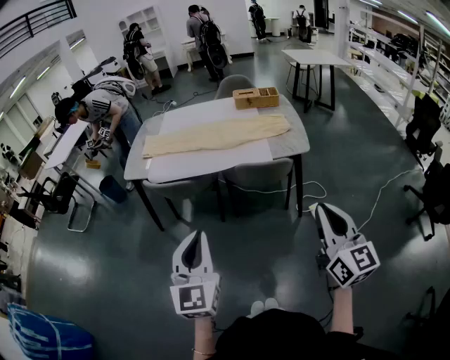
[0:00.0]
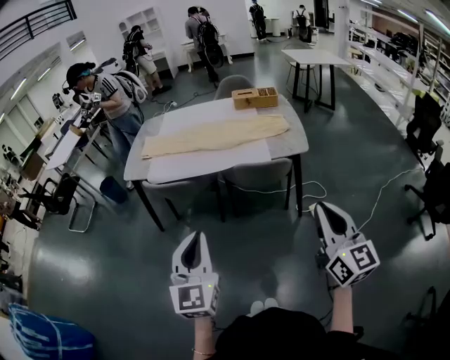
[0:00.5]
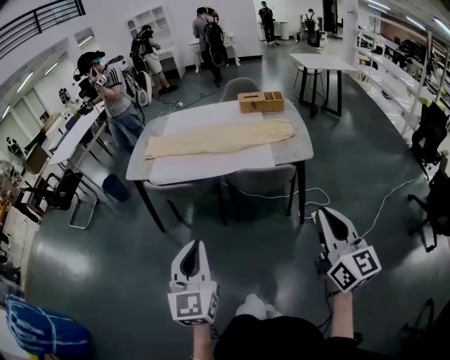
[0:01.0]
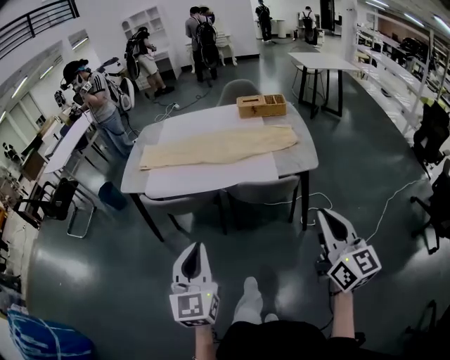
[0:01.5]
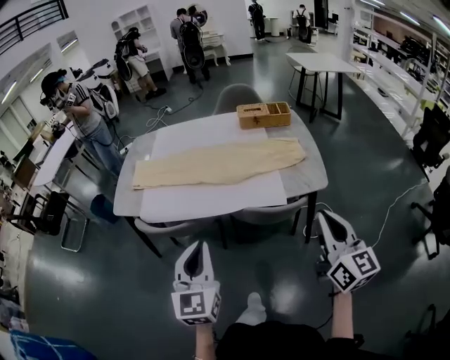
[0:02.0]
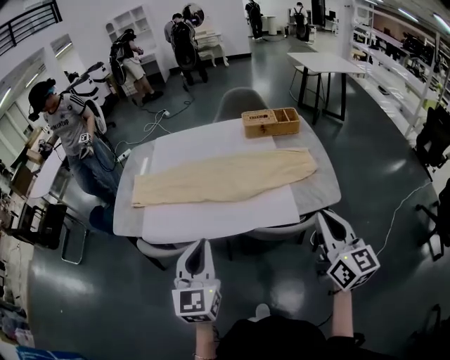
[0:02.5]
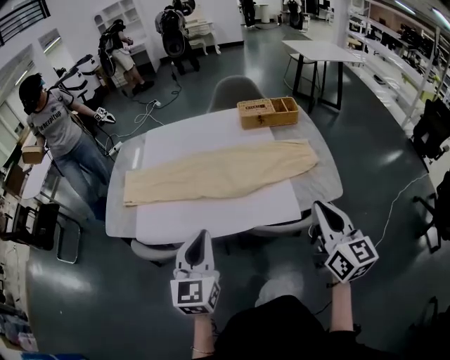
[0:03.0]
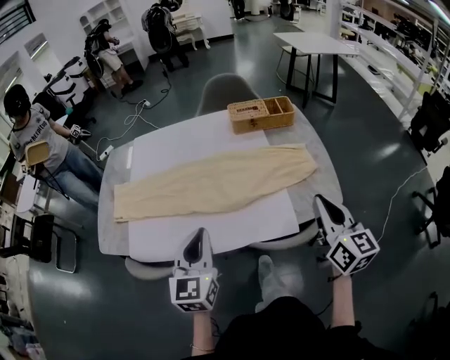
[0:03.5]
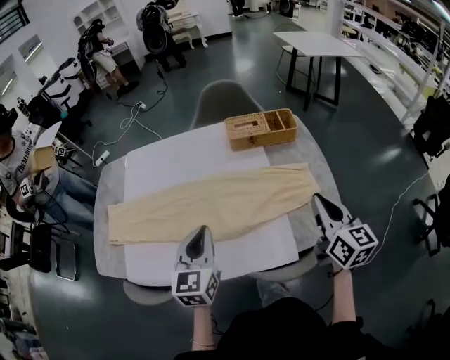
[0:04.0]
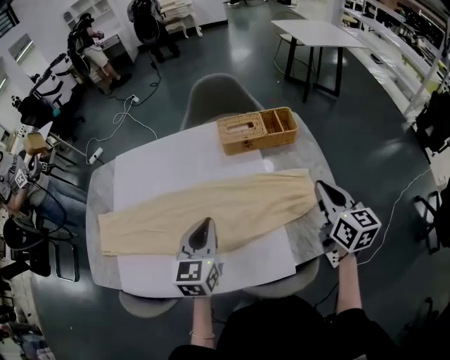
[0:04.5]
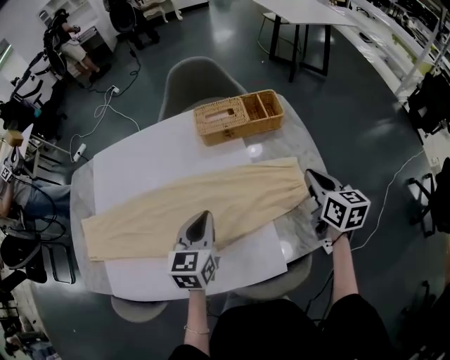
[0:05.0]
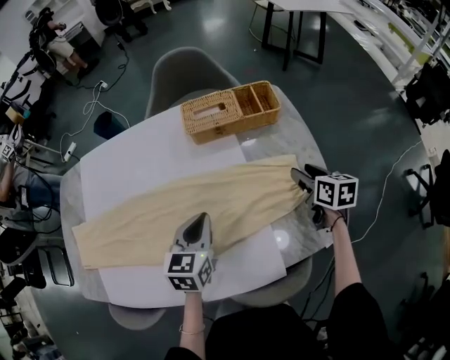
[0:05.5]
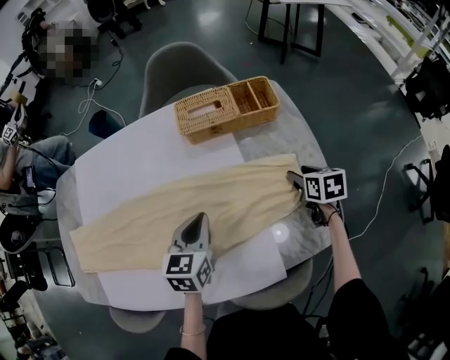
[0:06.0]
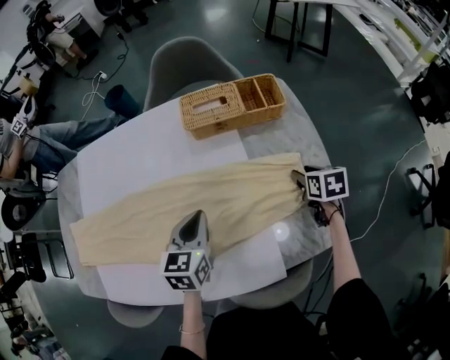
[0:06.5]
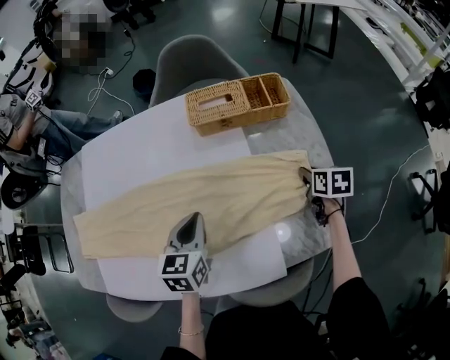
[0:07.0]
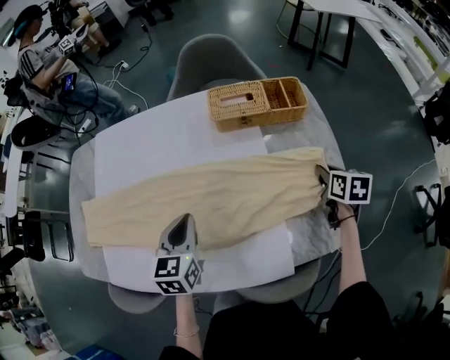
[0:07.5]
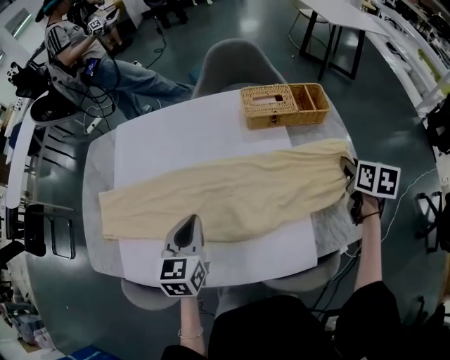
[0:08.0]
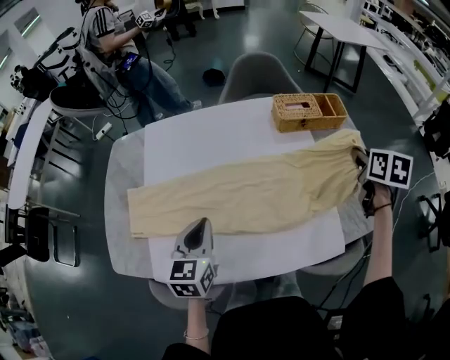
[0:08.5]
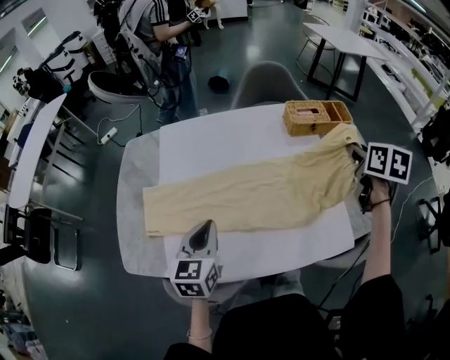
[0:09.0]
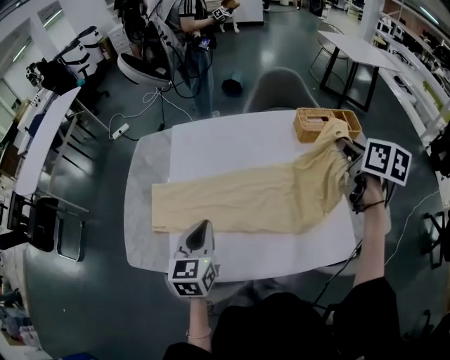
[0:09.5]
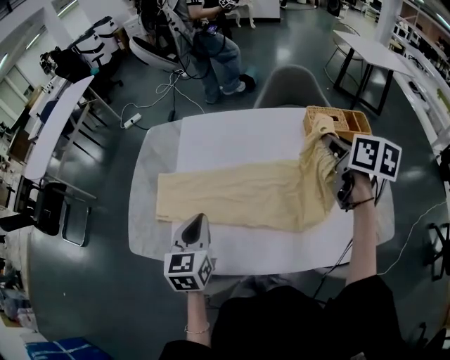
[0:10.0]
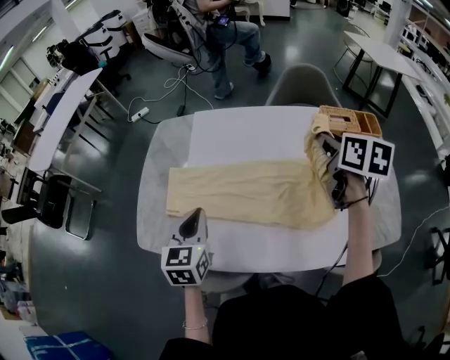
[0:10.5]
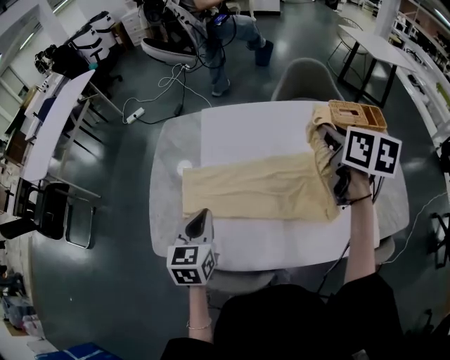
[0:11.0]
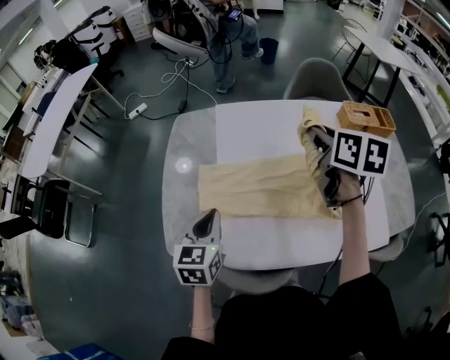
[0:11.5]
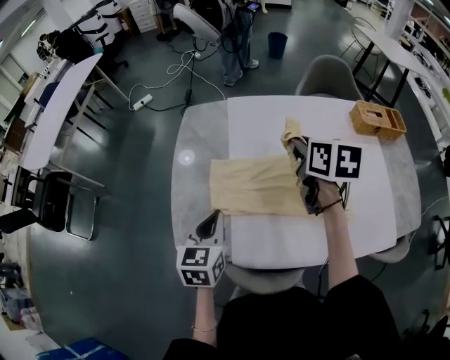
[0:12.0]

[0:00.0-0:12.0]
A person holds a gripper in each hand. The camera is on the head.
0:00.0 to 0:02.0: The grippers both shift forward by some 25 cm.
0:02.0 to 0:04.0: The grippers both shift forward by some 35 cm.
0:04.0 to 0:06.0: The right gripper shifts approximately 30 cm downward and forward, tips its fingers downward by approximately 40 degrees, and opens, while the left gripper travels forward, downward and to the right by some 25 cm, and changes its angle by about 20 degrees.
0:06.0 to 0:08.0: The right gripper travels upward by some 15 cm, and closes its fingers. The left gripper is displaced to the left and backward by some 20 cm.
0:08.0 to 0:10.0: The left gripper travels to the left and backward by some 25 cm, while the right gripper moves to the left and upward, approximately 40 cm, and rotates approximately 20 degrees.
0:10.0 to 0:12.0: The left gripper moves to the left, approximately 20 cm, while the right gripper shifts about 35 cm to the left.

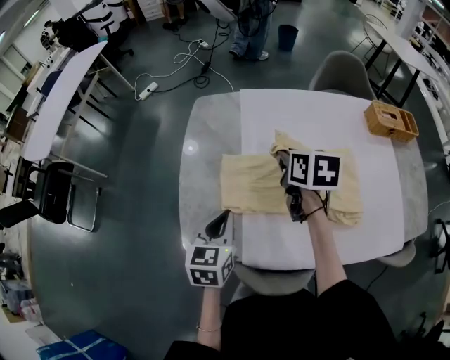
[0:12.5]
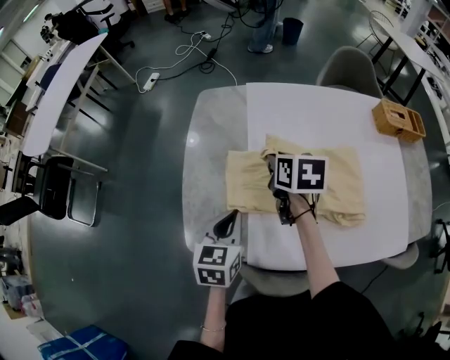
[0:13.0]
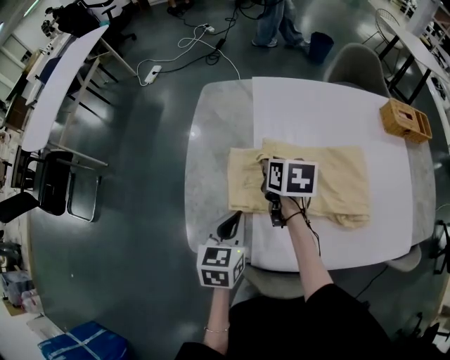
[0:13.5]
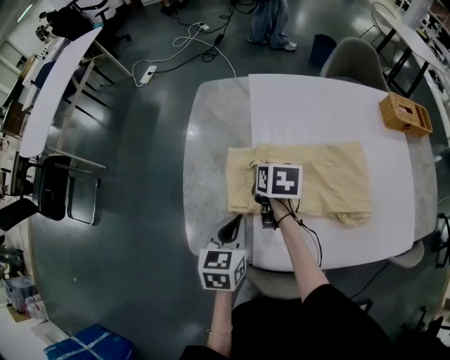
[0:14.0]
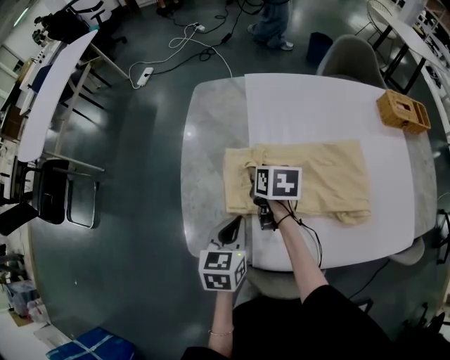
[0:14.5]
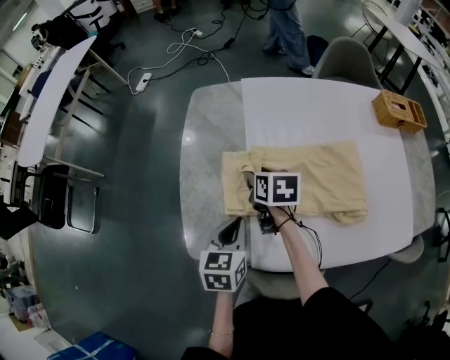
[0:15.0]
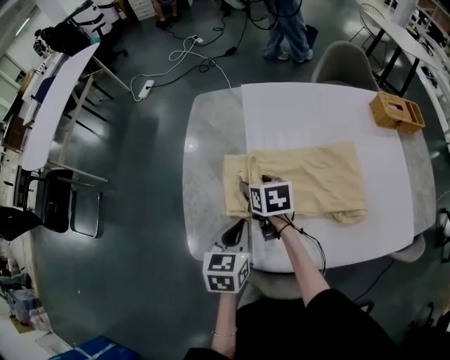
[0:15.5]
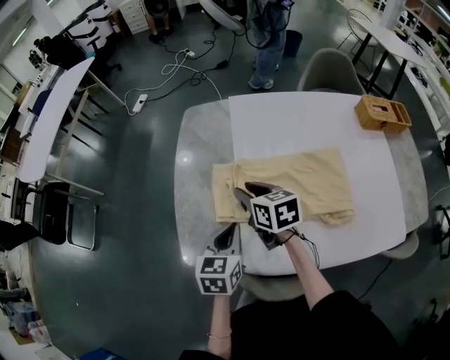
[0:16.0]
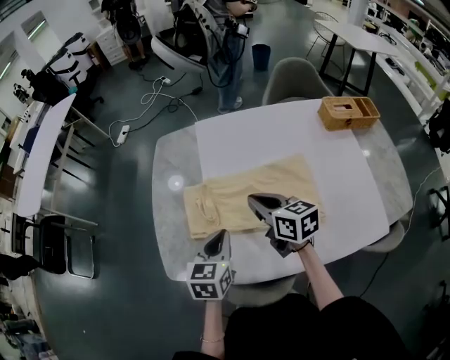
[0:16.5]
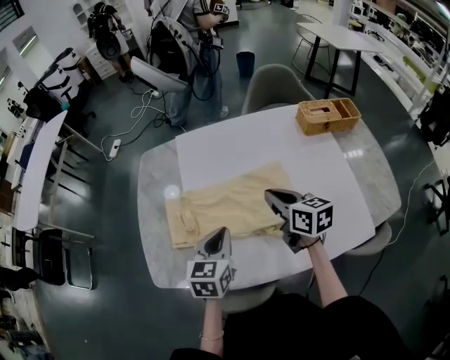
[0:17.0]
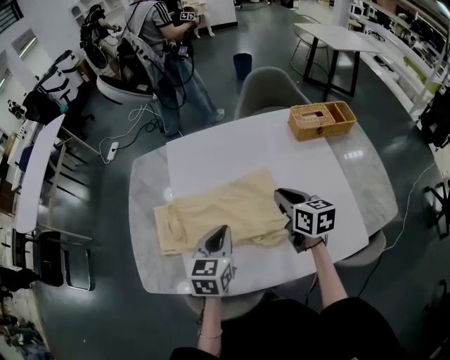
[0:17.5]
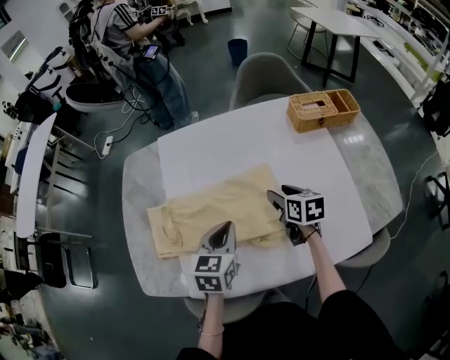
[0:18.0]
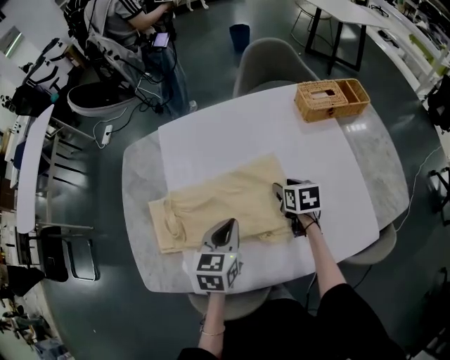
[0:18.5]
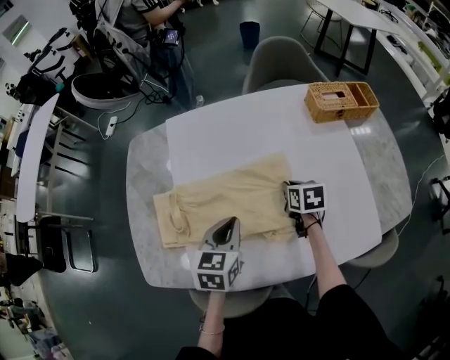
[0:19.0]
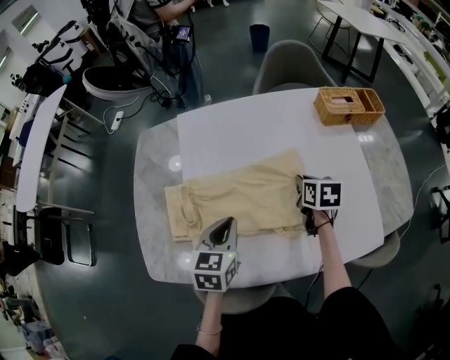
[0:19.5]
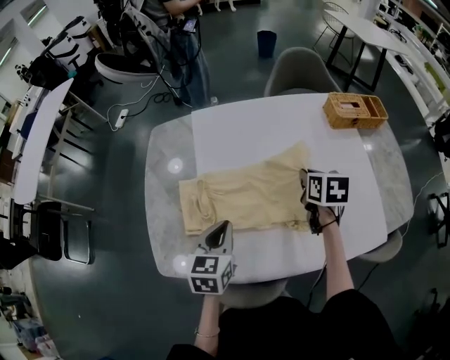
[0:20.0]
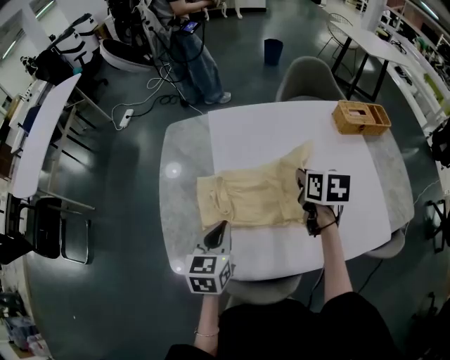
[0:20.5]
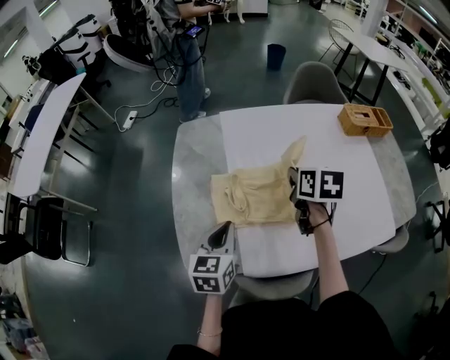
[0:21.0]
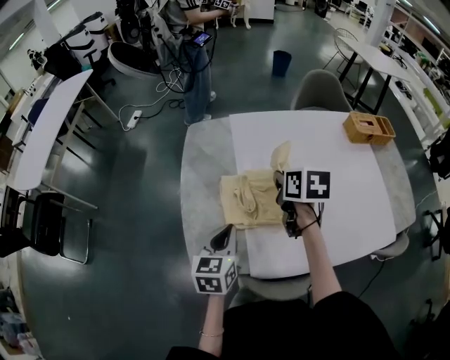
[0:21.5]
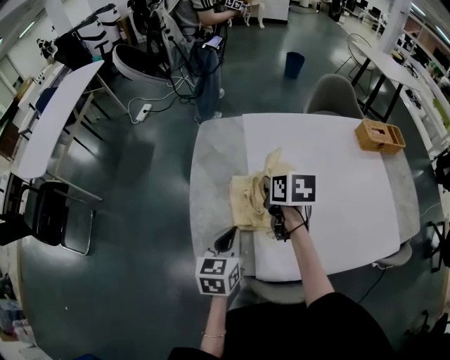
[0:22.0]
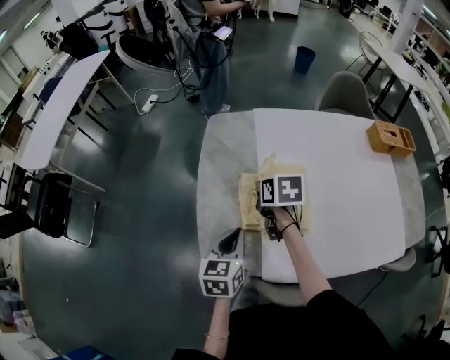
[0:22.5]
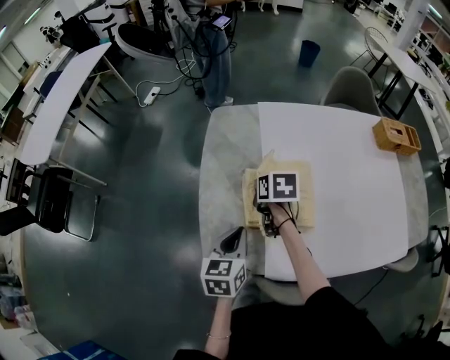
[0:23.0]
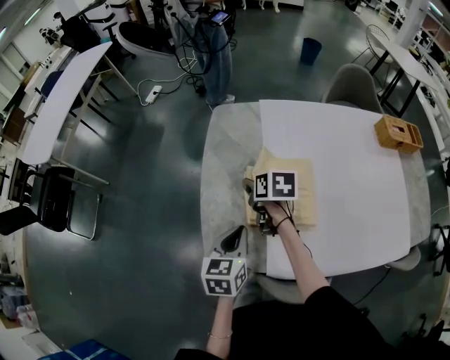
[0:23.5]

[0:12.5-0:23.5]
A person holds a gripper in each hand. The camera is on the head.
0:12.5 to 0:14.5: The right gripper moves downward and to the left, approximately 15 cm, while the left gripper goes some 5 cm downward.
0:14.5 to 0:16.0: The right gripper shifts approximately 5 cm upward, turns by about 20 degrees, and opens, then closes once more.
0:16.0 to 0:18.0: The right gripper heads to the right, covering about 40 cm, changes its angle by roughly 20 degrees, and closes and opens again. Meanwhile the left gripper travels to the right by approximately 25 cm.
0:18.0 to 0:20.0: The right gripper travels upward and to the left by roughly 10 cm, and closes. The left gripper heads to the left, covering some 15 cm.
0:20.0 to 0:21.5: The left gripper heads to the left, covering approximately 15 cm; the right gripper shifts roughly 25 cm to the left.
0:21.5 to 0:23.5: The right gripper shifts approximately 20 cm to the left and downward, and opens up.

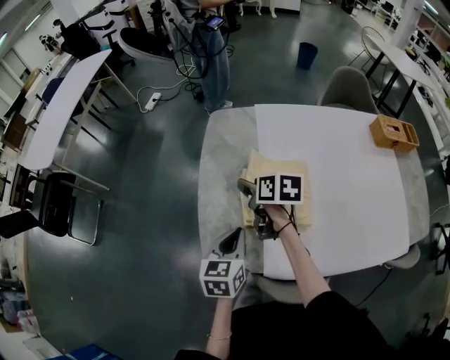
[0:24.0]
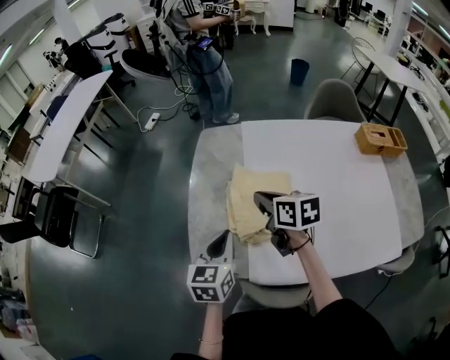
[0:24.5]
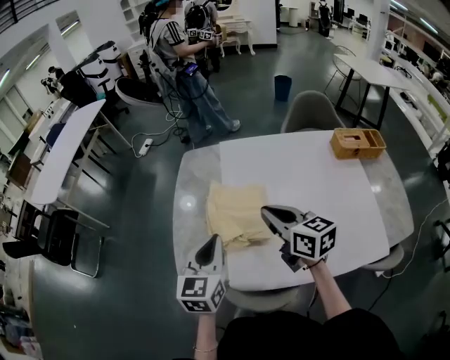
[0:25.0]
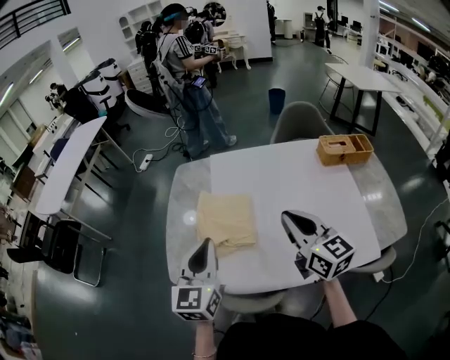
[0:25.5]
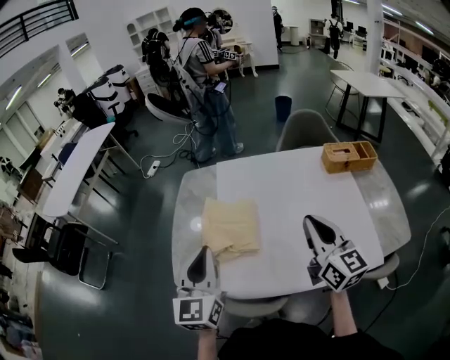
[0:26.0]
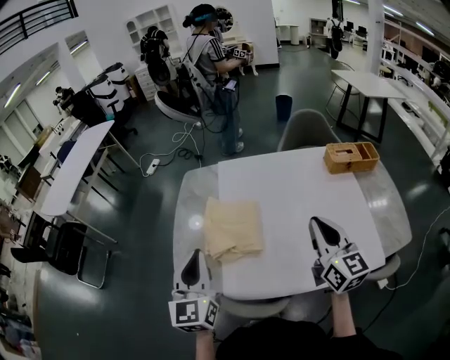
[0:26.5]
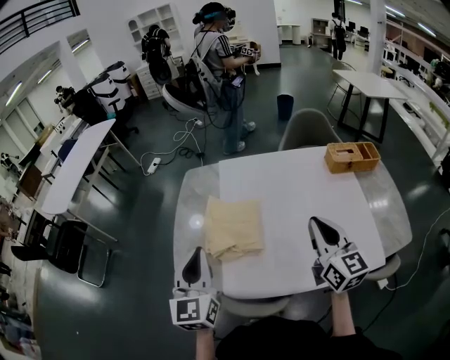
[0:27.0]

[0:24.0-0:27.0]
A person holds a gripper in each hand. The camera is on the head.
0:24.0 to 0:25.5: The right gripper is displaced to the right, backward and upward by roughly 40 cm, tilts its fingers approximately 40 degrees upward, and closes its fingers; the left gripper shifts approximately 25 cm upward and to the right, and changes its angle by some 30 degrees.
0:25.5 to 0:27.0: The right gripper changes place by roughly 5 cm.
